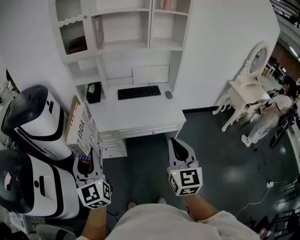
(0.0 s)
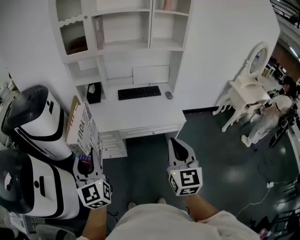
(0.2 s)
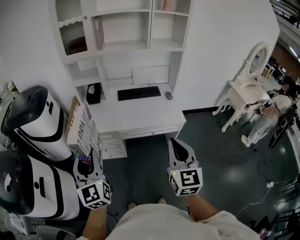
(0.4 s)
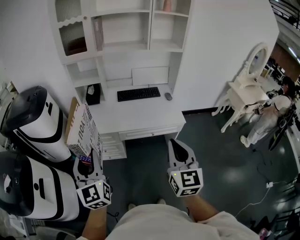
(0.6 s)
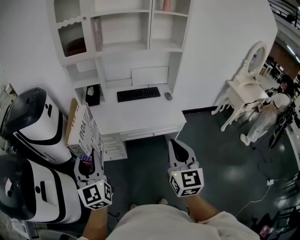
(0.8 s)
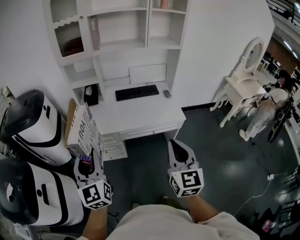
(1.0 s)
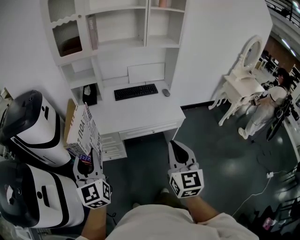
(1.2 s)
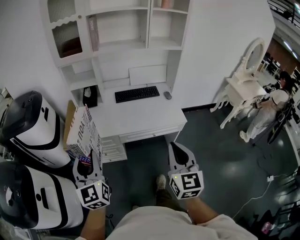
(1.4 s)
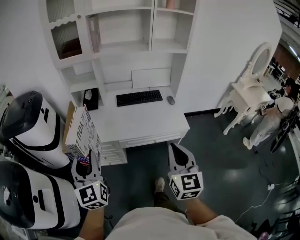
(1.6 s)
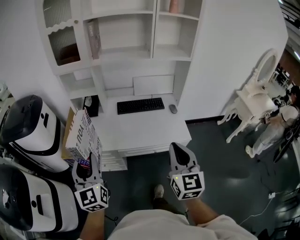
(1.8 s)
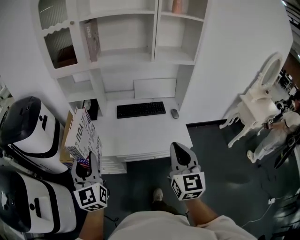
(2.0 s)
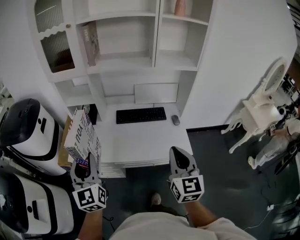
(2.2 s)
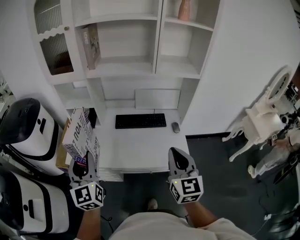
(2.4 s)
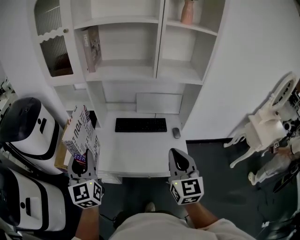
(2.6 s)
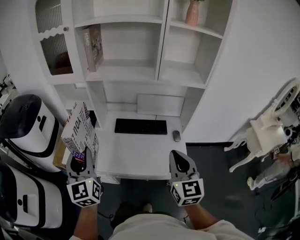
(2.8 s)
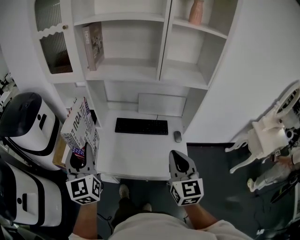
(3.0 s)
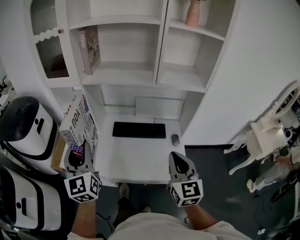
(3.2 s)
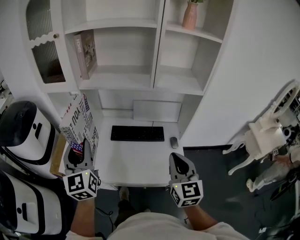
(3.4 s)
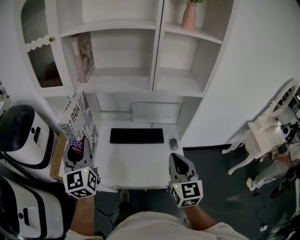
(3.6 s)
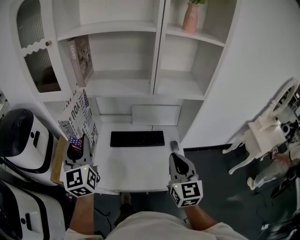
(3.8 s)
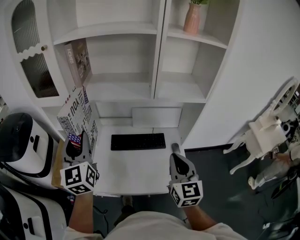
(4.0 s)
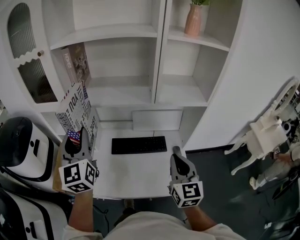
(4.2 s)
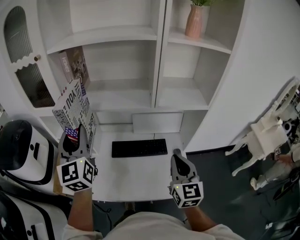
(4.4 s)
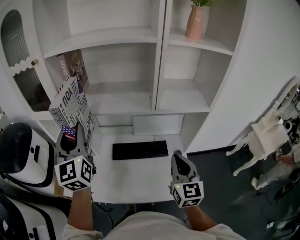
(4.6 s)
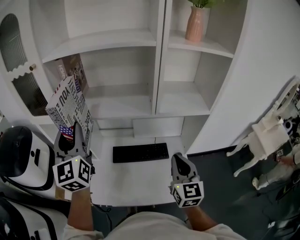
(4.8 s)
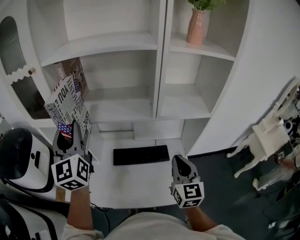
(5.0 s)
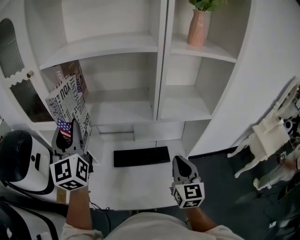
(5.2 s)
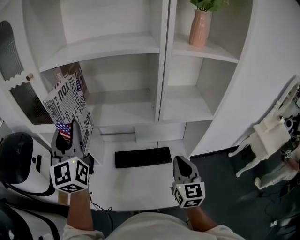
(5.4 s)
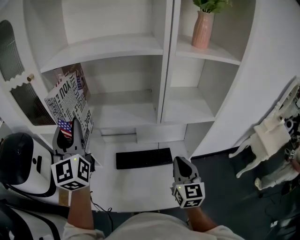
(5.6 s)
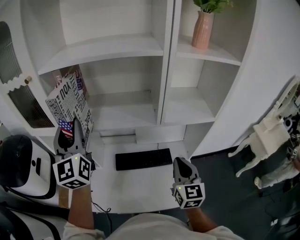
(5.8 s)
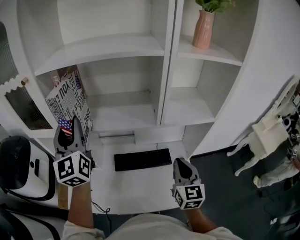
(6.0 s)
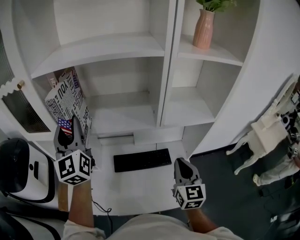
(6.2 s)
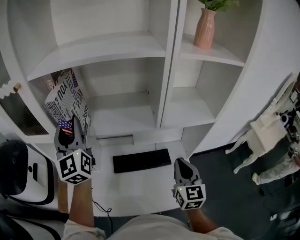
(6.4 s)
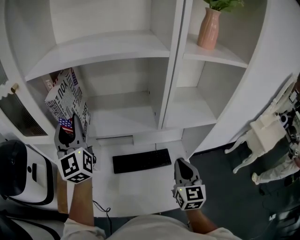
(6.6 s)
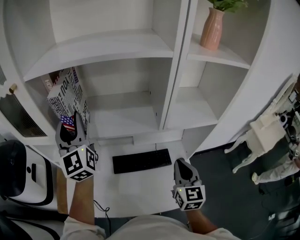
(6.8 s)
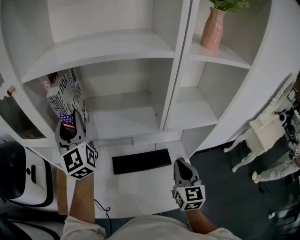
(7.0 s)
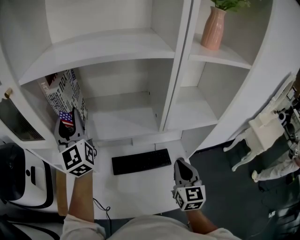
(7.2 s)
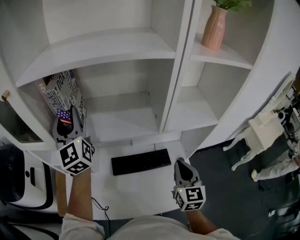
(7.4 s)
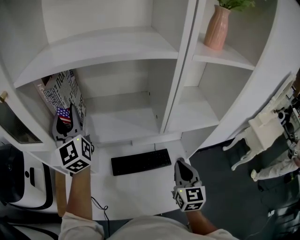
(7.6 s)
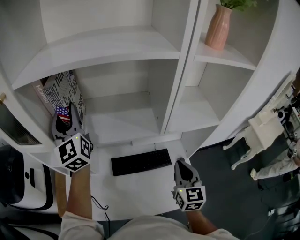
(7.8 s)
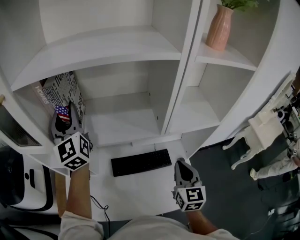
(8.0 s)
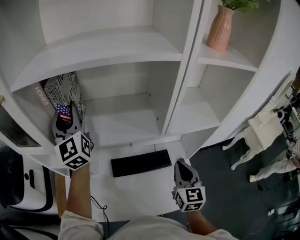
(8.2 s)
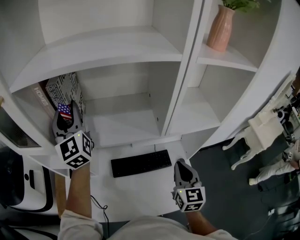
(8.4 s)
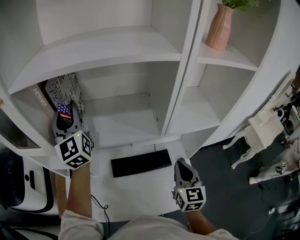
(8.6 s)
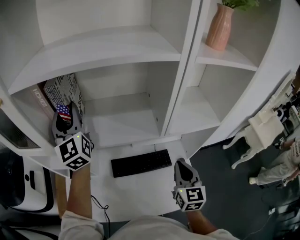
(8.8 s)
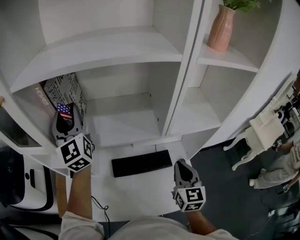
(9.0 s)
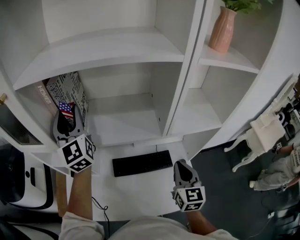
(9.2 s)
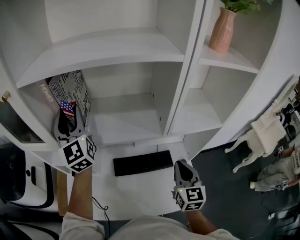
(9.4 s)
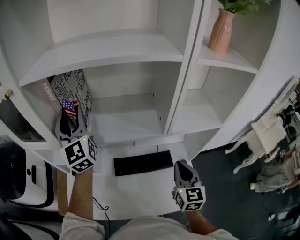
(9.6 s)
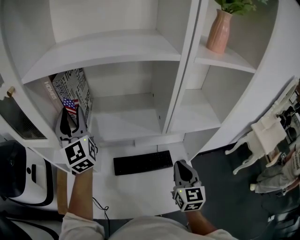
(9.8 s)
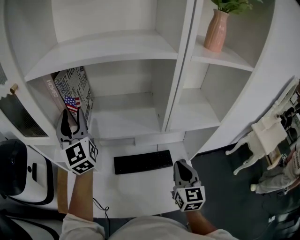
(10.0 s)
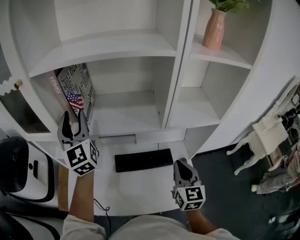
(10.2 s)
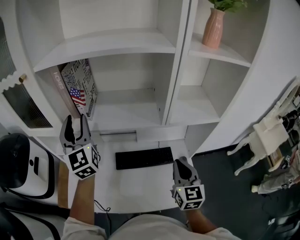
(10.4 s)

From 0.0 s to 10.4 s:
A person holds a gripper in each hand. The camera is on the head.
From 0.0 s to 1.4 s: The left gripper goes about 5 cm forward.
From 1.4 s to 3.0 s: Both grippers travel together forward and to the right, approximately 35 cm.
From 3.0 s to 4.4 s: The left gripper moves forward and upward, approximately 25 cm. Meanwhile the right gripper goes about 15 cm forward.
From 4.4 s to 6.0 s: The left gripper travels forward and upward by roughly 10 cm, while the right gripper shifts about 5 cm forward.
From 6.0 s to 7.4 s: The left gripper moves forward, approximately 10 cm.
From 7.4 s to 9.0 s: The grippers make only small movements.
From 9.0 s to 10.4 s: The left gripper moves backward, some 10 cm.

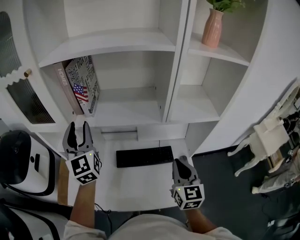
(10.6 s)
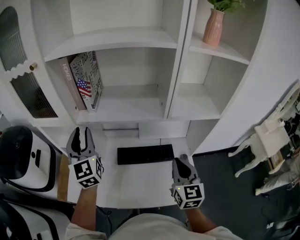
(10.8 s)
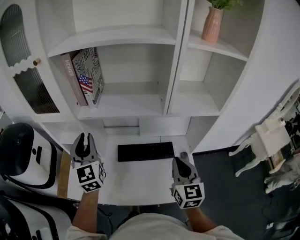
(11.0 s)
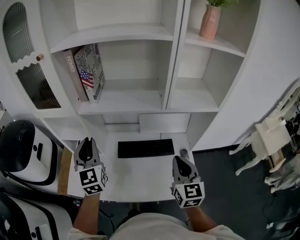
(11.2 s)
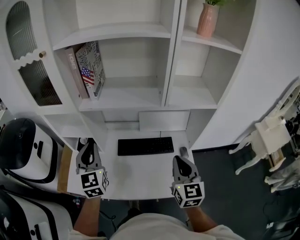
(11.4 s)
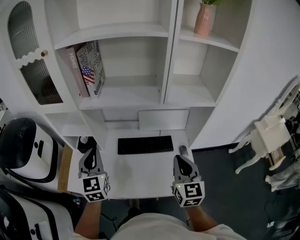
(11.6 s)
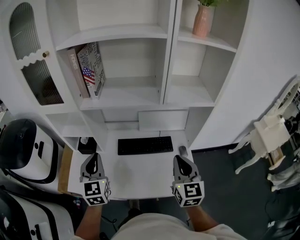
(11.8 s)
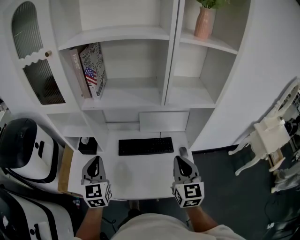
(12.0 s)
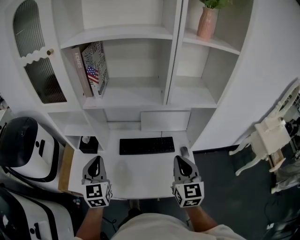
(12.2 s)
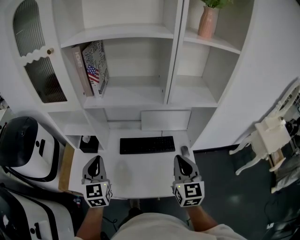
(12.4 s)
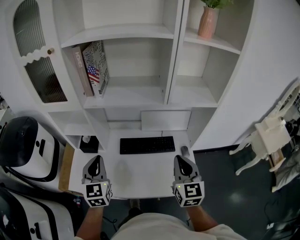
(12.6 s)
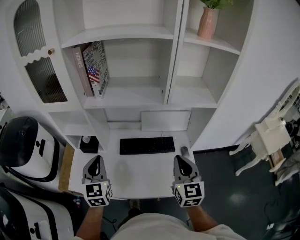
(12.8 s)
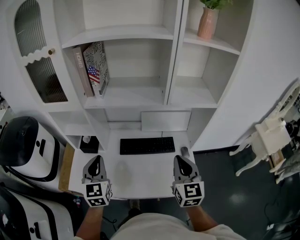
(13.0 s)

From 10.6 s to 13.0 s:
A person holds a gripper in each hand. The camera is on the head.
From 10.6 s to 11.8 s: The left gripper is displaced backward and downward by about 20 cm, and closes up, while the right gripper travels backward by some 10 cm.
From 11.8 s to 13.0 s: The grippers stay close to where they were, moving slightly.

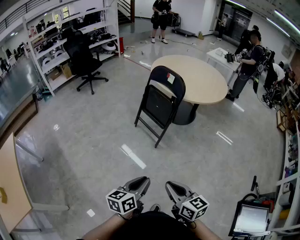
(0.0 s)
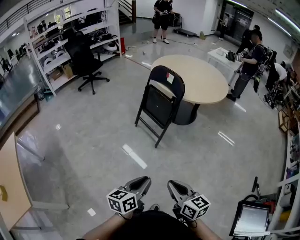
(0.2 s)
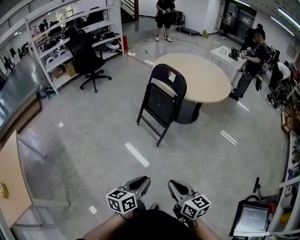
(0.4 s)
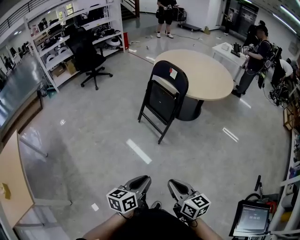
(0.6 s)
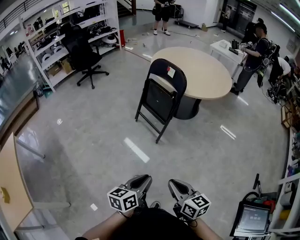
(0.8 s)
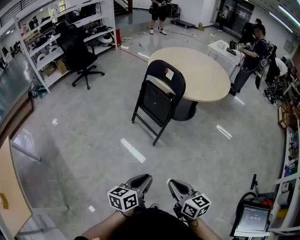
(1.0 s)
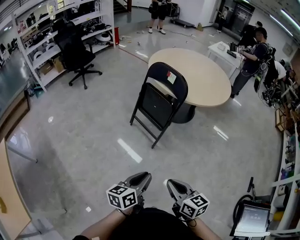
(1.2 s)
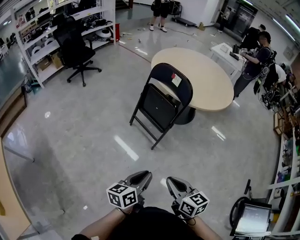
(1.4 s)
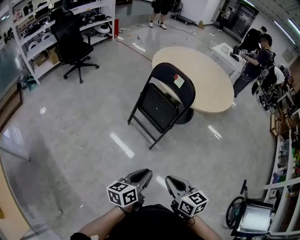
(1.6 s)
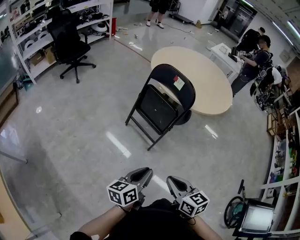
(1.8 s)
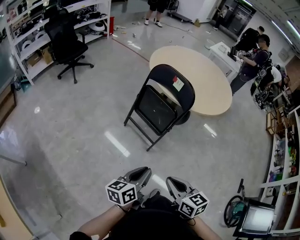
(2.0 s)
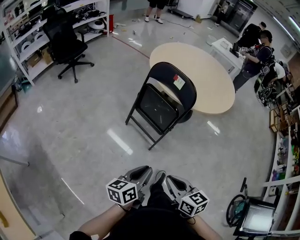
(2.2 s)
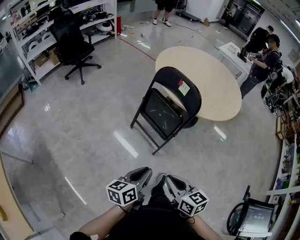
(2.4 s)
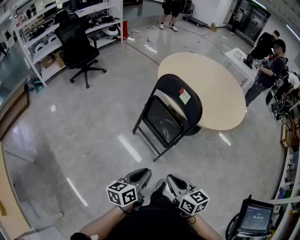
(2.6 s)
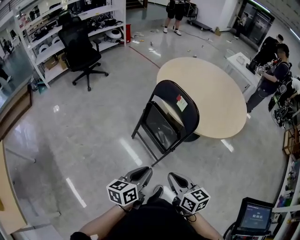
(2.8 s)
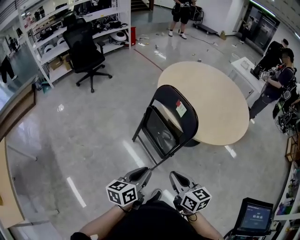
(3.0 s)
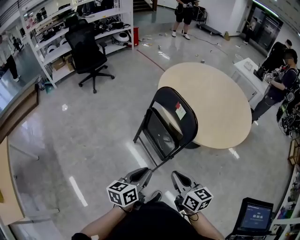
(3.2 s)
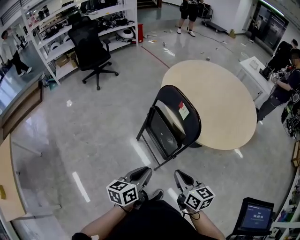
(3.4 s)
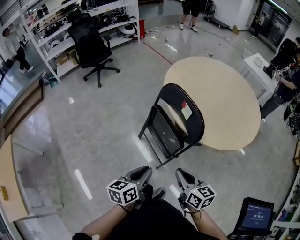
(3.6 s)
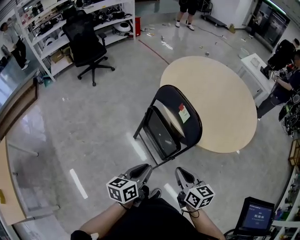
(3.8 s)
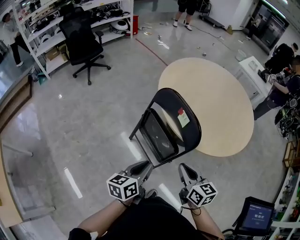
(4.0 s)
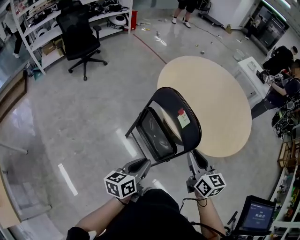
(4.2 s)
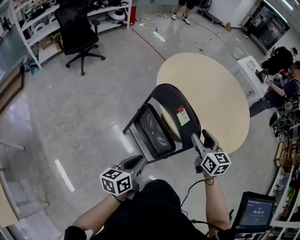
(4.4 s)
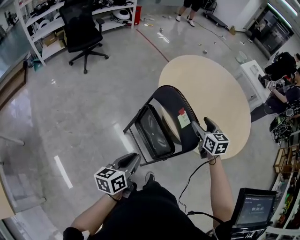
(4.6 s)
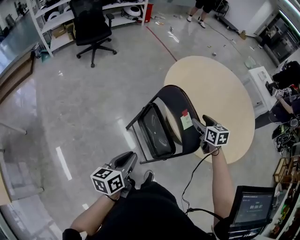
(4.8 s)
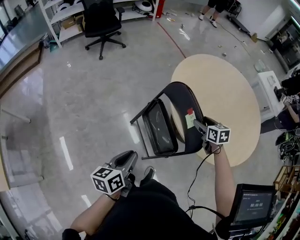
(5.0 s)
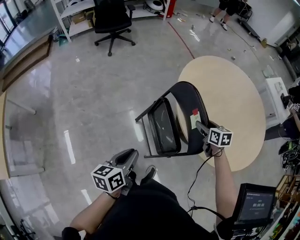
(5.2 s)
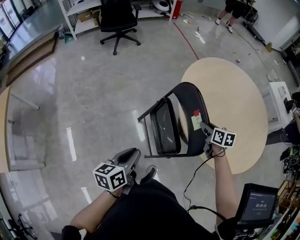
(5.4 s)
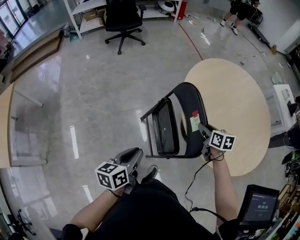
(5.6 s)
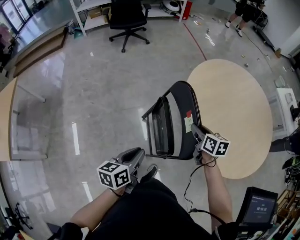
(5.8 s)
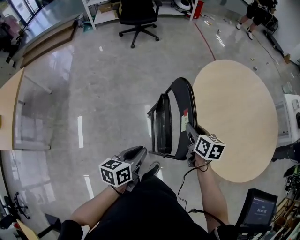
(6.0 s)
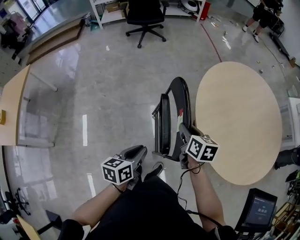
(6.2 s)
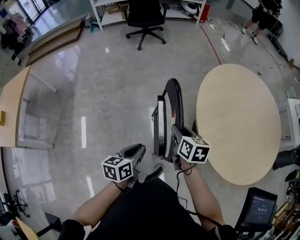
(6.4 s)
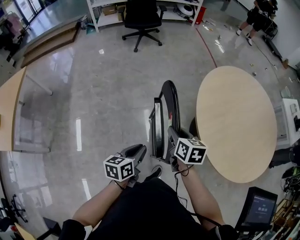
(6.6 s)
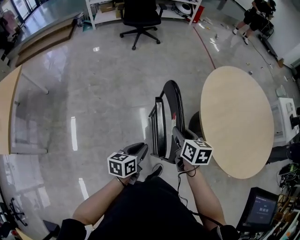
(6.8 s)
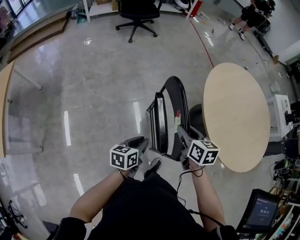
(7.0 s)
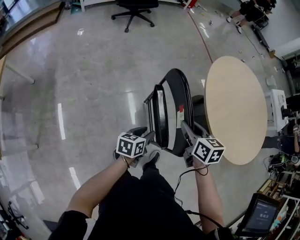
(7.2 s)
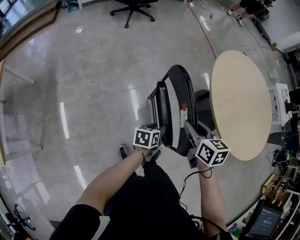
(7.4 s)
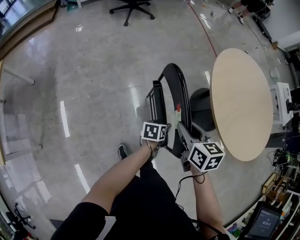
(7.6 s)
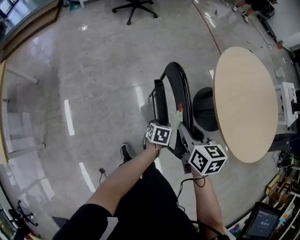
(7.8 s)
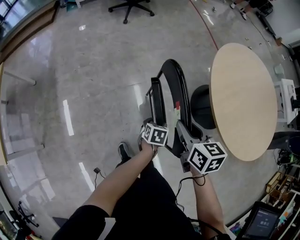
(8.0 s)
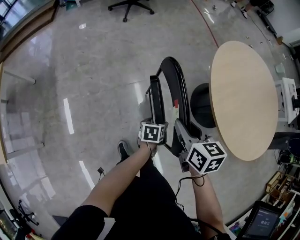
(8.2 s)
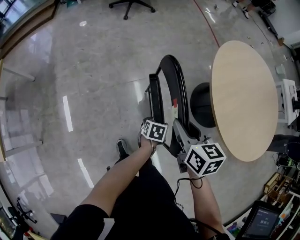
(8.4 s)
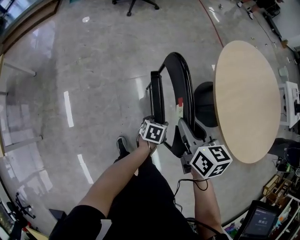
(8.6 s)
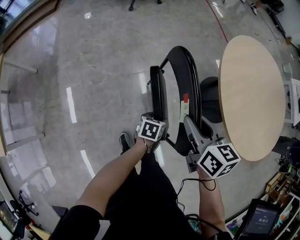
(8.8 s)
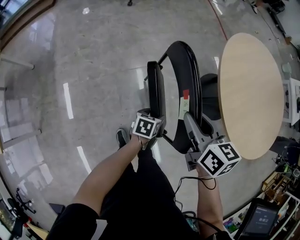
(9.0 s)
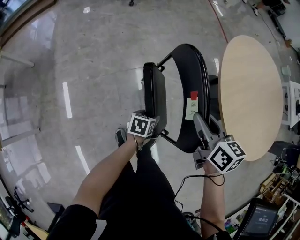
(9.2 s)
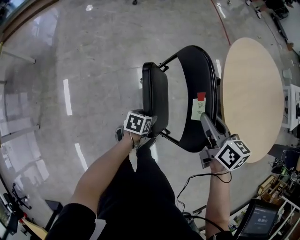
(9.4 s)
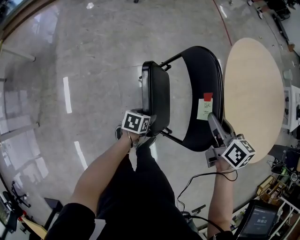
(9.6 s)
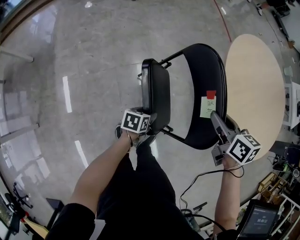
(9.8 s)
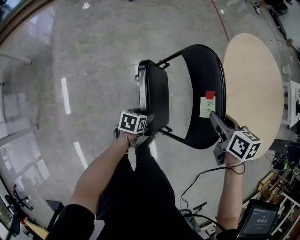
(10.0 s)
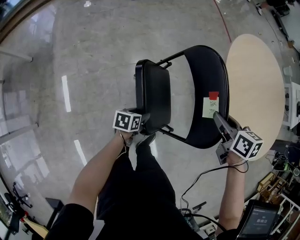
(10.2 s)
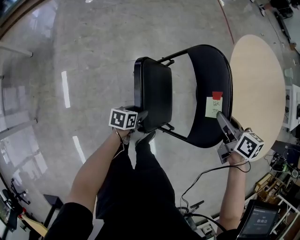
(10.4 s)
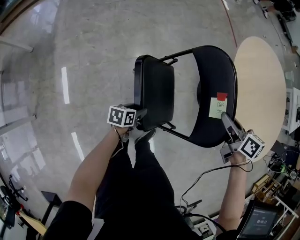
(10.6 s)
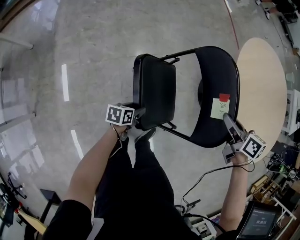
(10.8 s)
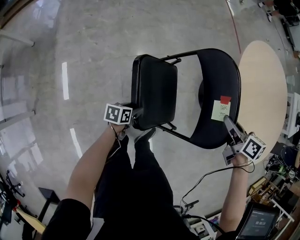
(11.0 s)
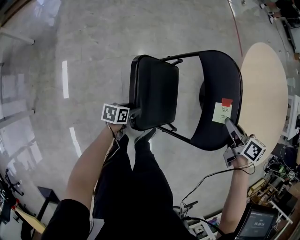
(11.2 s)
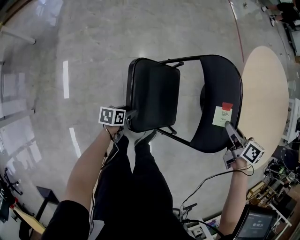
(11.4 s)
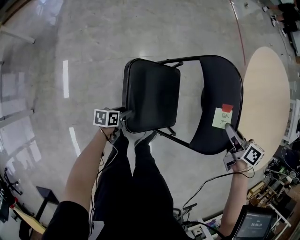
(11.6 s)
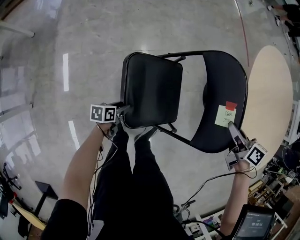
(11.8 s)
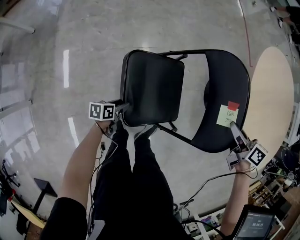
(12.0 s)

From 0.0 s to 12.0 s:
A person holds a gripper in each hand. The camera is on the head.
From 0.0 s to 1.6 s: The grippers both shift forward by about 20 cm.
From 1.6 s to 3.0 s: The grippers both shift forward by some 20 cm.
From 3.0 s to 4.4 s: The left gripper travels forward by some 15 cm; the right gripper moves forward, roughly 30 cm, swivels approximately 20 degrees, and opens its fingers.
From 4.4 s to 6.0 s: The right gripper ends up roughly 15 cm from where it was, swivels approximately 30 degrees, and closes; the left gripper changes its angle by approximately 30 degrees.
From 6.0 s to 7.6 s: The left gripper is displaced downward by roughly 20 cm, changes its angle by approximately 20 degrees, and opens its fingers; the right gripper is displaced to the left by approximately 20 cm.
From 7.6 s to 9.0 s: The left gripper shifts by some 5 cm.
From 9.0 s to 10.4 s: The left gripper goes some 10 cm to the left and downward; the right gripper moves to the right, roughly 10 cm.
From 10.4 s to 12.0 s: The right gripper is displaced downward by roughly 5 cm, while the left gripper goes some 15 cm to the left and downward.
